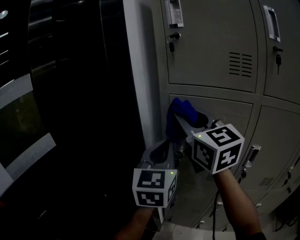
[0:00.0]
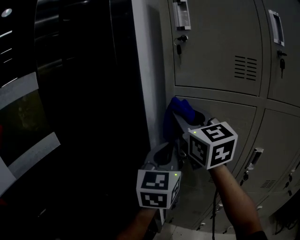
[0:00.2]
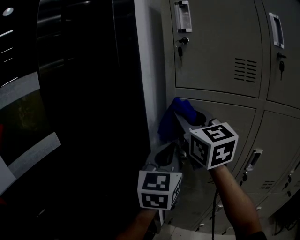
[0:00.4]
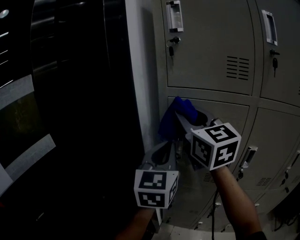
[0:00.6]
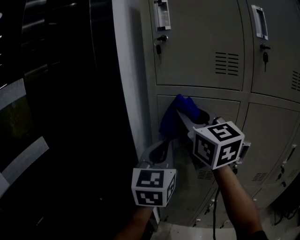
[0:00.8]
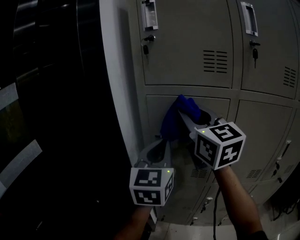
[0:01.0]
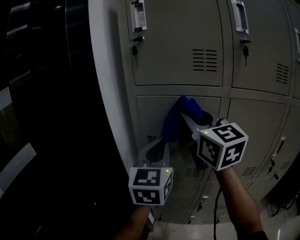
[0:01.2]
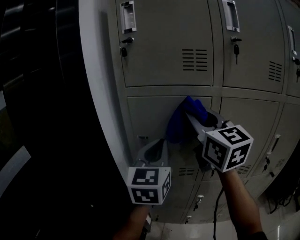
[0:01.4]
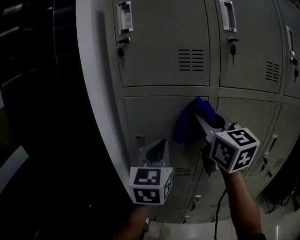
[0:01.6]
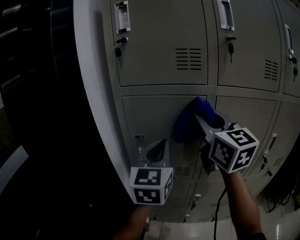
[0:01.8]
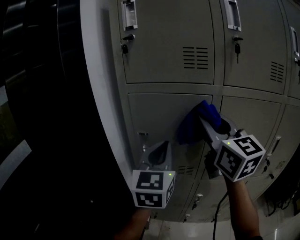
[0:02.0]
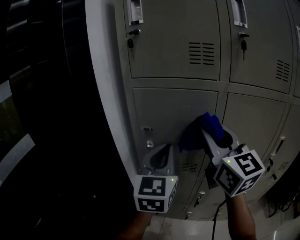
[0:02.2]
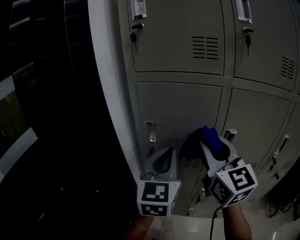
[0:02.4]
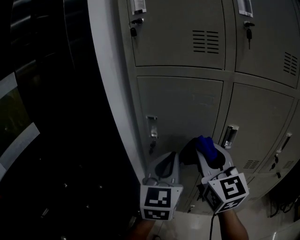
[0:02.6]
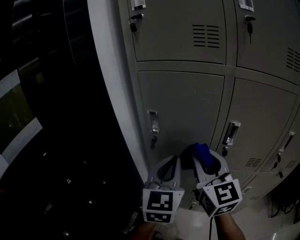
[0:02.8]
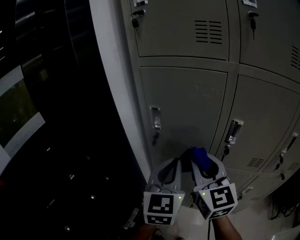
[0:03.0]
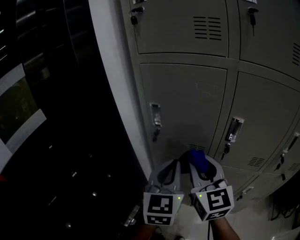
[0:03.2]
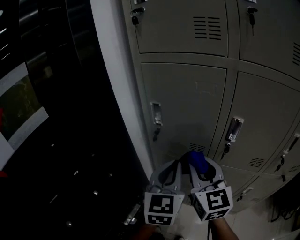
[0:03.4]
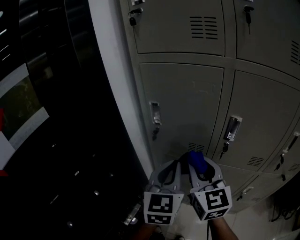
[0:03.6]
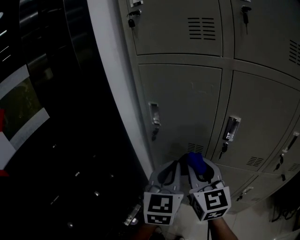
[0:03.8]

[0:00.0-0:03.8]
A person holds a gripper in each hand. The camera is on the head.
0:00.0 to 0:01.2: Both grippers move to the right, roughly 10 cm.
0:01.2 to 0:02.6: The left gripper moves downward and backward, roughly 10 cm. Meanwhile the right gripper moves downward and backward, some 15 cm.
0:02.6 to 0:03.8: The right gripper is displaced downward by some 10 cm. Meanwhile the left gripper is displaced downward by some 5 cm.

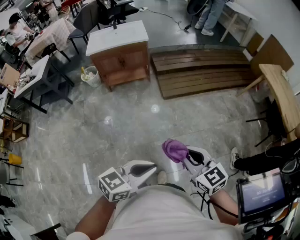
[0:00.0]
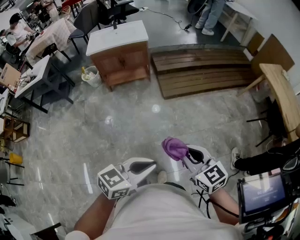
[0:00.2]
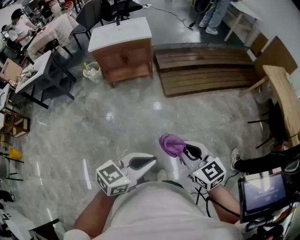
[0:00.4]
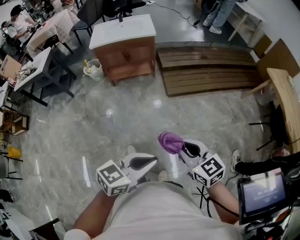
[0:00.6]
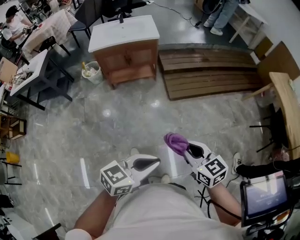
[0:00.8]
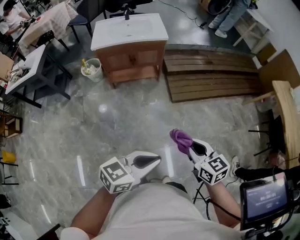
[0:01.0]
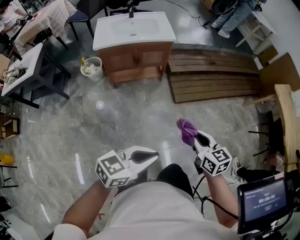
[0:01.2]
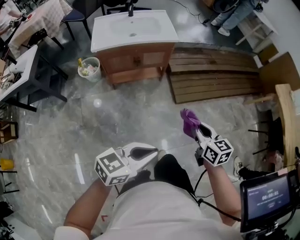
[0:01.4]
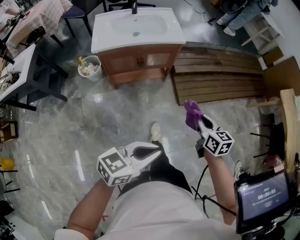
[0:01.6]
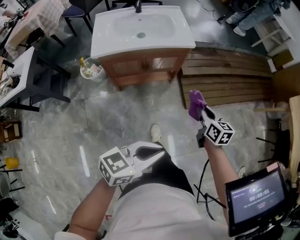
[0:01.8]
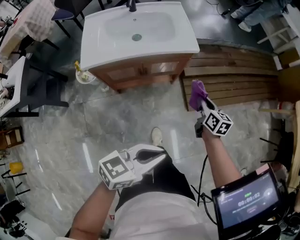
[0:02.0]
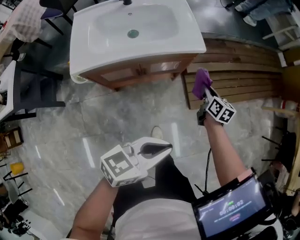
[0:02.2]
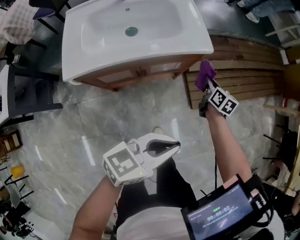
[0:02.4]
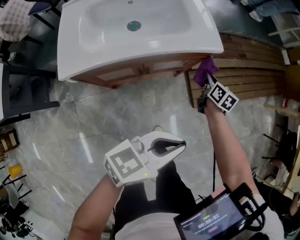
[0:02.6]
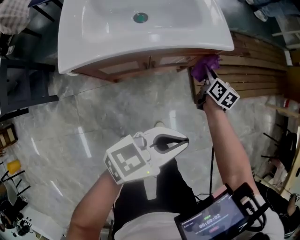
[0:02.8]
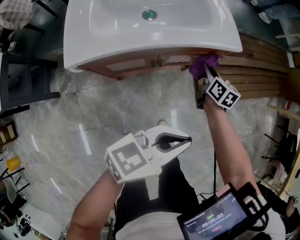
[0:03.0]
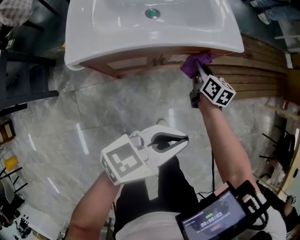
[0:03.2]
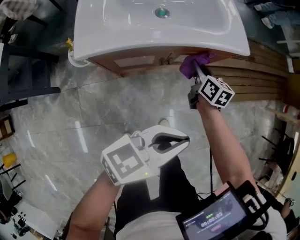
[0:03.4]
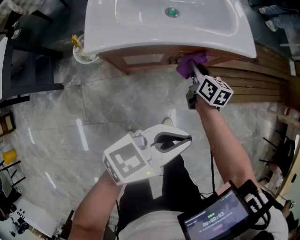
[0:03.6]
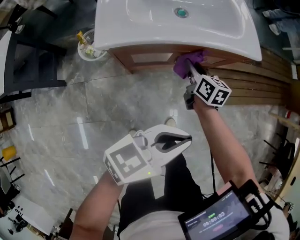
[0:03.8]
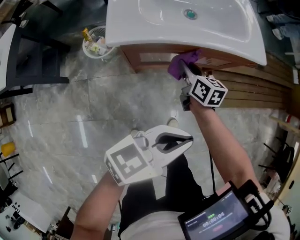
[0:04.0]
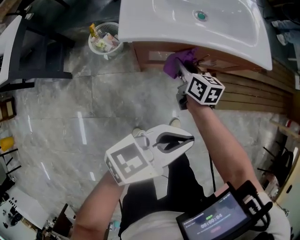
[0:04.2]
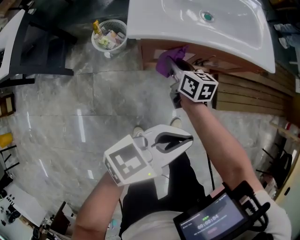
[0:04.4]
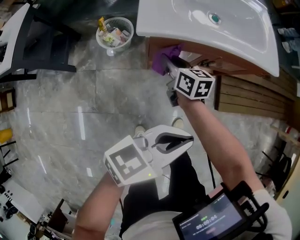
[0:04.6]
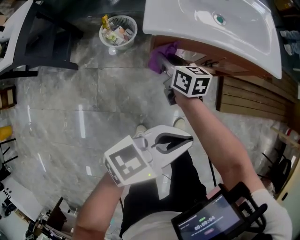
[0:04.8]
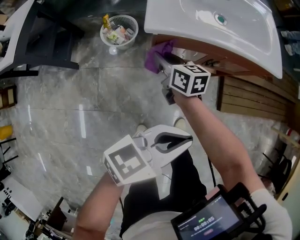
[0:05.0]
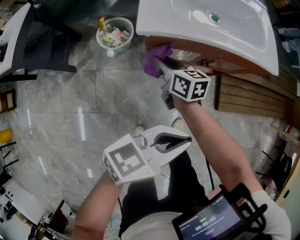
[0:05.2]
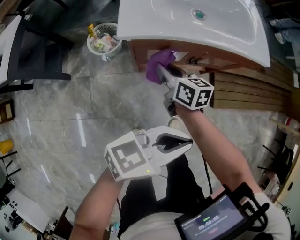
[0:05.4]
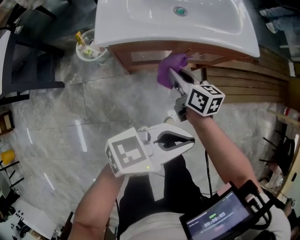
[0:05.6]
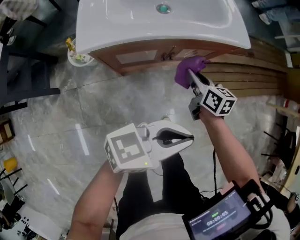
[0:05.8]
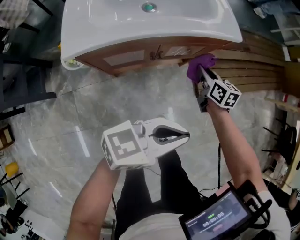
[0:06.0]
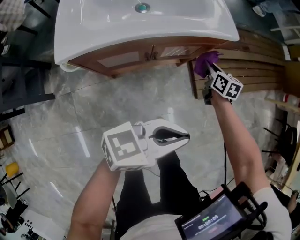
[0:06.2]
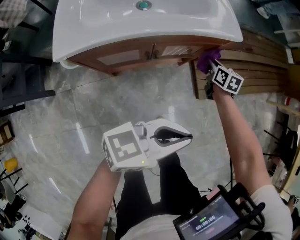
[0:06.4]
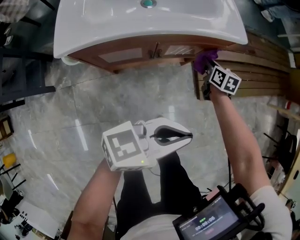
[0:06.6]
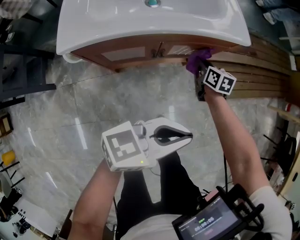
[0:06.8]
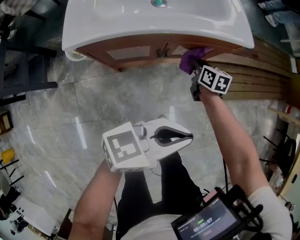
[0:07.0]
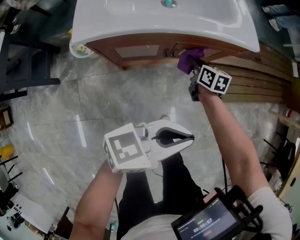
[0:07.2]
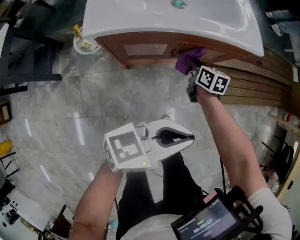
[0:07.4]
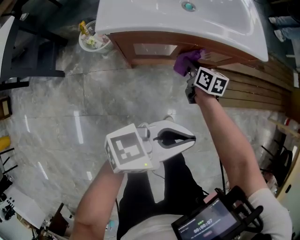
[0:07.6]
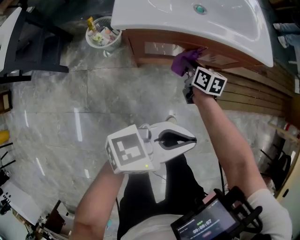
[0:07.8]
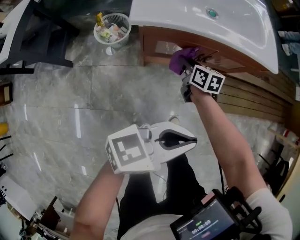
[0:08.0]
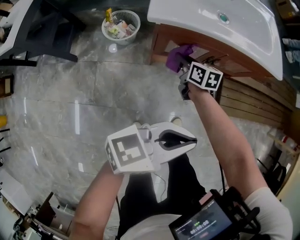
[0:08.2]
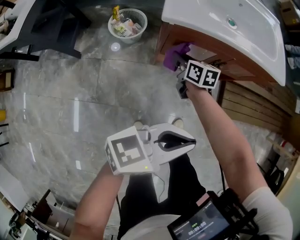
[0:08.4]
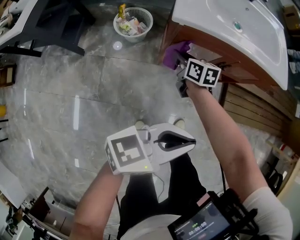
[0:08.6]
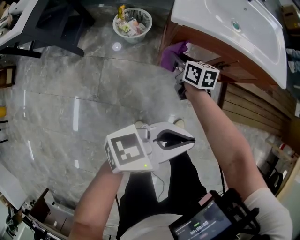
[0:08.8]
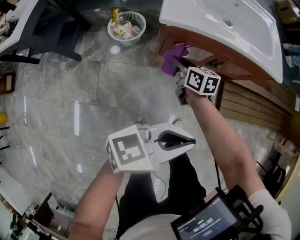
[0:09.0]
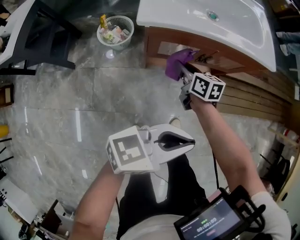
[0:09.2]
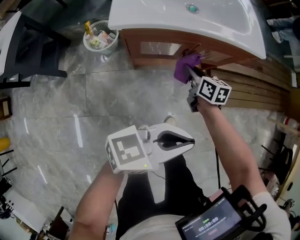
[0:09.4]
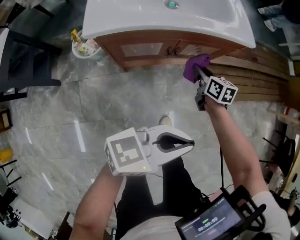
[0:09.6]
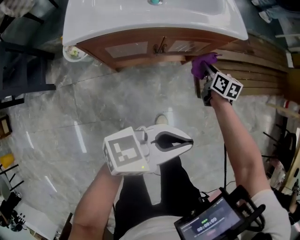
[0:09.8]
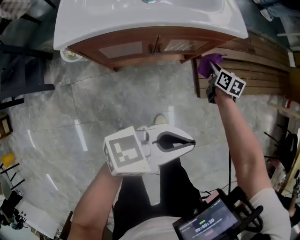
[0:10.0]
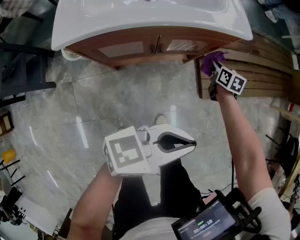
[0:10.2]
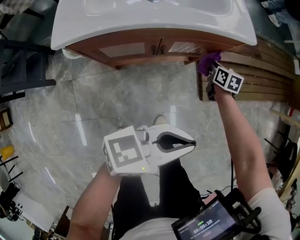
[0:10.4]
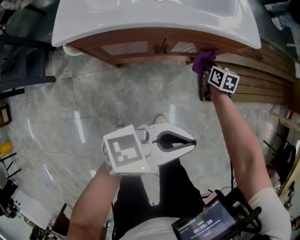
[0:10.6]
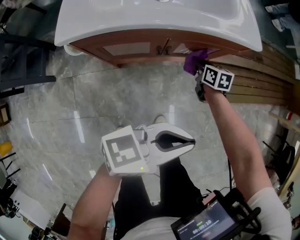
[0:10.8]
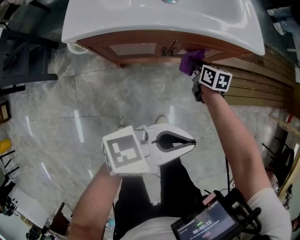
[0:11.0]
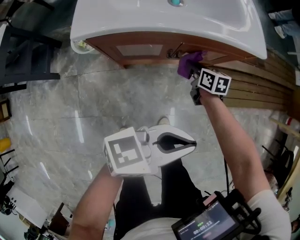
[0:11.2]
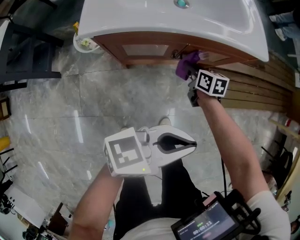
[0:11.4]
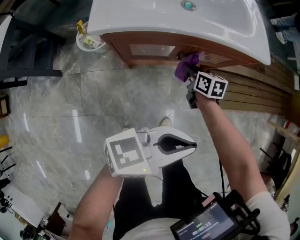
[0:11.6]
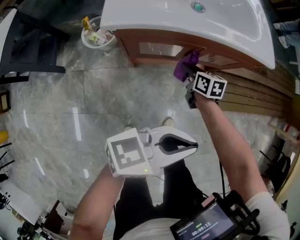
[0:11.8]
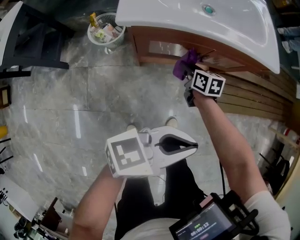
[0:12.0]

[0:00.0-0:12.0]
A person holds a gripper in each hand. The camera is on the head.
0:00.0 to 0:01.6: The pair of grippers is taken forward and to the left, some 50 cm. The right gripper swivels approximately 30 degrees.
0:01.6 to 0:03.0: Both grippers move forward, to the left and downward, approximately 50 cm.
0:03.0 to 0:04.4: The right gripper goes approximately 35 cm to the left and backward, and changes its angle by about 30 degrees. Meanwhile the left gripper travels to the left and backward by some 20 cm.
0:04.4 to 0:06.0: The left gripper ends up approximately 15 cm from where it was. Meanwhile the right gripper shifts by about 35 cm, and turns by about 20 degrees.
0:06.0 to 0:07.6: The right gripper moves to the left, roughly 15 cm; the left gripper travels to the left by some 5 cm.
0:07.6 to 0:09.0: The left gripper moves to the left and backward, about 15 cm, while the right gripper travels to the left and backward by approximately 25 cm.
0:09.0 to 0:10.4: The right gripper moves roughly 50 cm, and changes its angle by approximately 30 degrees, while the left gripper ends up approximately 25 cm from where it was.
0:10.4 to 0:12.0: The right gripper moves to the left and backward, about 30 cm; the left gripper moves to the left and backward, about 15 cm.

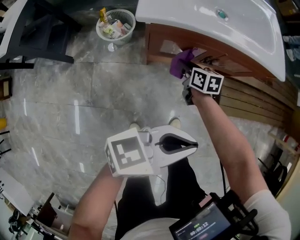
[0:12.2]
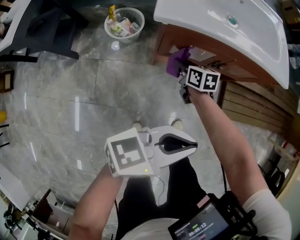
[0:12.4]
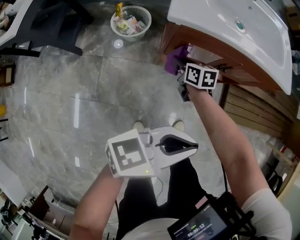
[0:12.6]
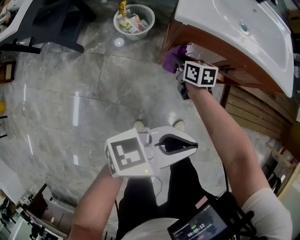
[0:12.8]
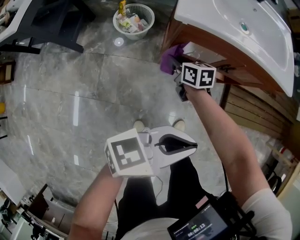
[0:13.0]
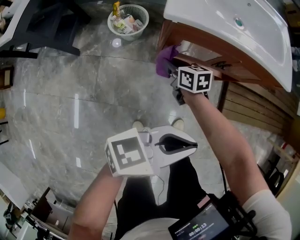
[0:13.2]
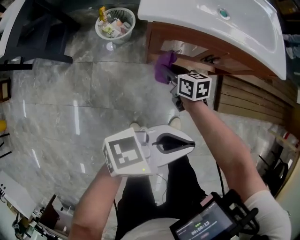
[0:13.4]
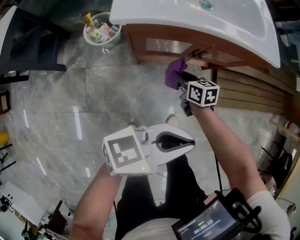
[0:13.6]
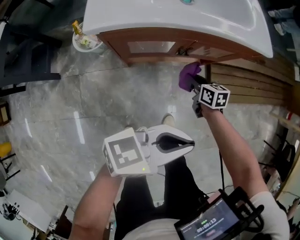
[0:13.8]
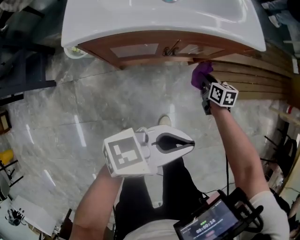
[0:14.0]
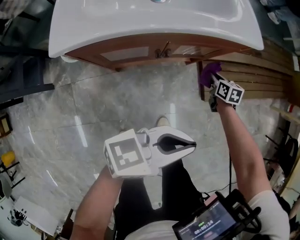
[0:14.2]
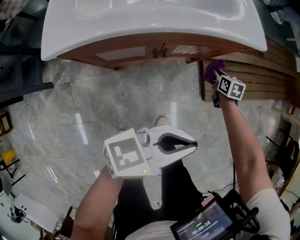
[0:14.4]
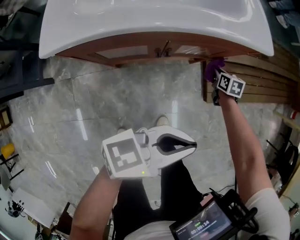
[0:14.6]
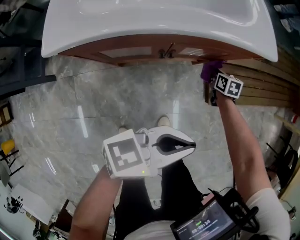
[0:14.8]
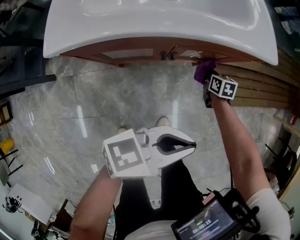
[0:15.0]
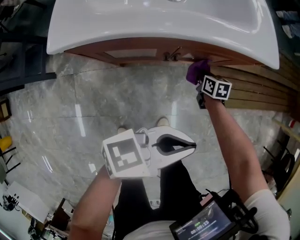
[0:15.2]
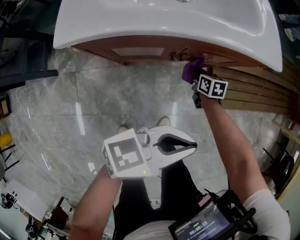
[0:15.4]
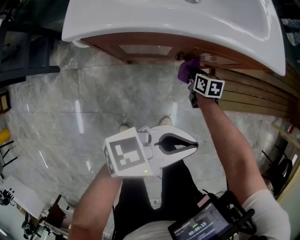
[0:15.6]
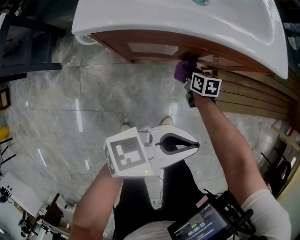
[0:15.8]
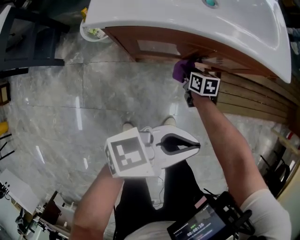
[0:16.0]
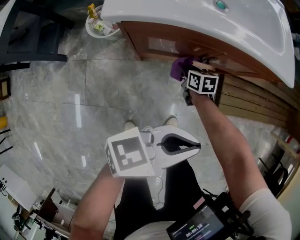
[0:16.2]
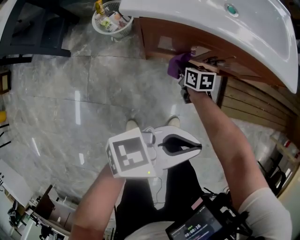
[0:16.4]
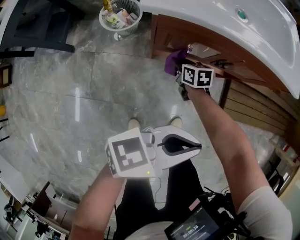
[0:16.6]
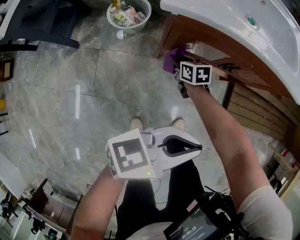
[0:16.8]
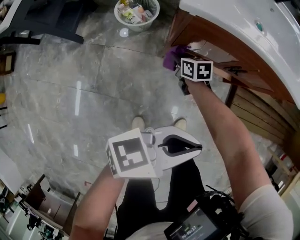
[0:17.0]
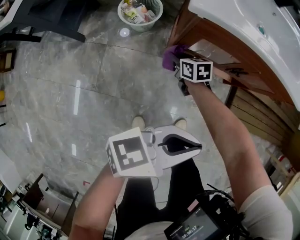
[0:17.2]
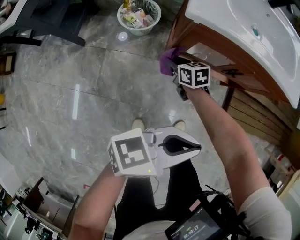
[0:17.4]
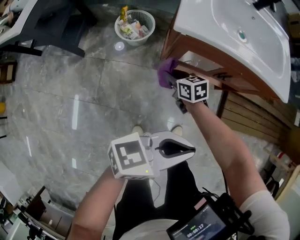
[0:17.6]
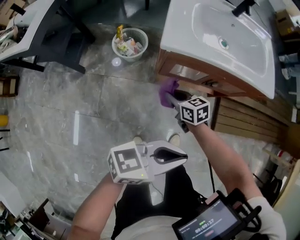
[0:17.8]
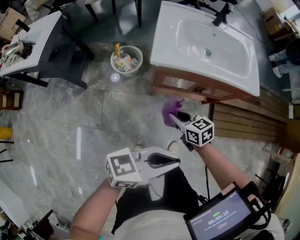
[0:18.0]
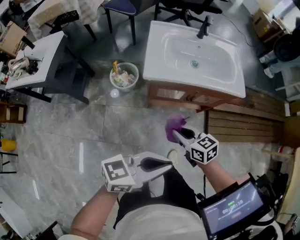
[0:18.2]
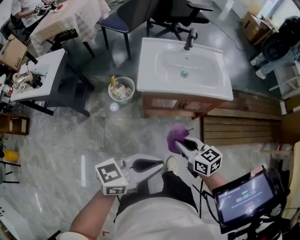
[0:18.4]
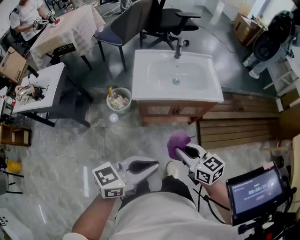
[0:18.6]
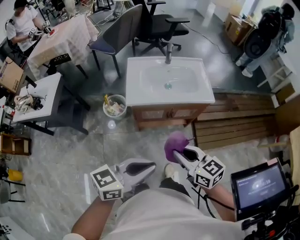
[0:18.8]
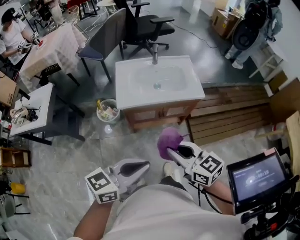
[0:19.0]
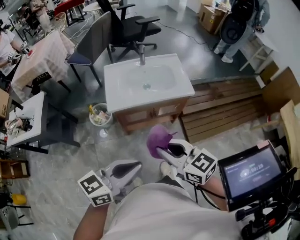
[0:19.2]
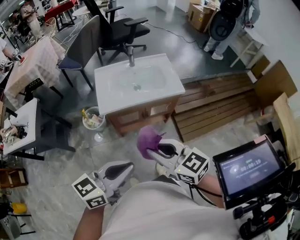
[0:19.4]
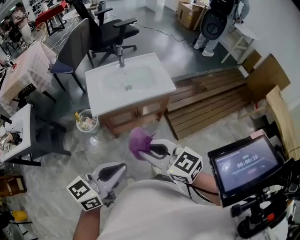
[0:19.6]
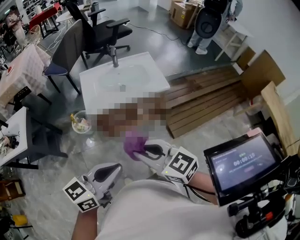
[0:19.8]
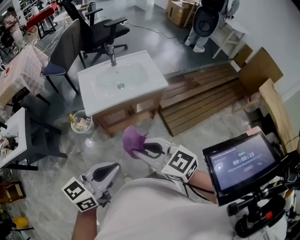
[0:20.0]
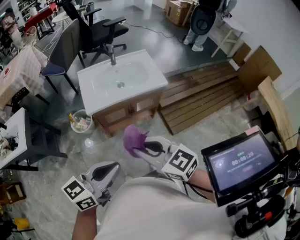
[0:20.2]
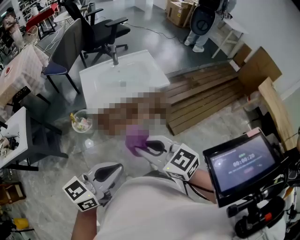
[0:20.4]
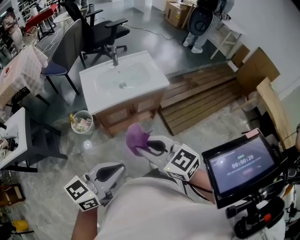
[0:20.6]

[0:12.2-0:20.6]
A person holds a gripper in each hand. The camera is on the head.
0:13.6 to 0:15.0: The left gripper is displaced forward and to the right by roughly 15 cm, while the right gripper goes some 30 cm forward, to the right and downward, and changes its angle by some 20 degrees.
0:15.0 to 0:16.4: The right gripper travels to the left and backward by some 30 cm, and swivels approximately 20 degrees. Meanwhile the left gripper travels to the left and backward by some 15 cm.
0:16.4 to 0:17.8: The left gripper changes place by roughly 15 cm, while the right gripper is displaced upward by about 20 cm.
0:17.8 to 0:19.2: The left gripper shifts about 30 cm upward. The right gripper travels upward by roughly 50 cm, and swivels approximately 30 degrees.
0:19.2 to 0:20.6: Both grippers travel together backward, roughly 5 cm.
